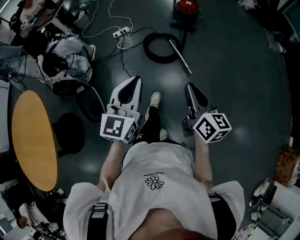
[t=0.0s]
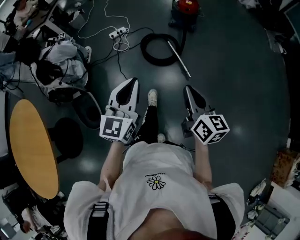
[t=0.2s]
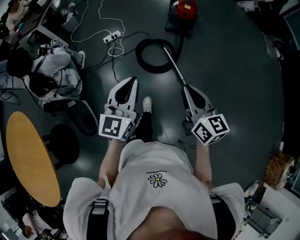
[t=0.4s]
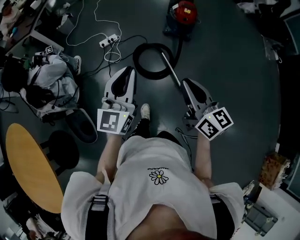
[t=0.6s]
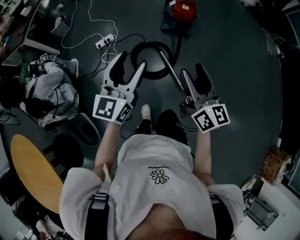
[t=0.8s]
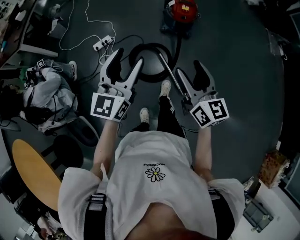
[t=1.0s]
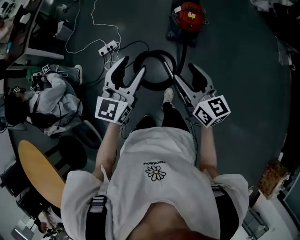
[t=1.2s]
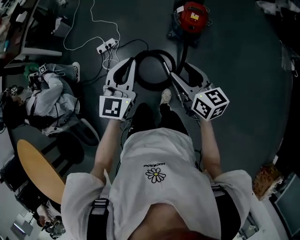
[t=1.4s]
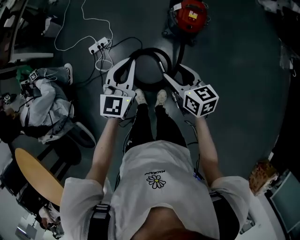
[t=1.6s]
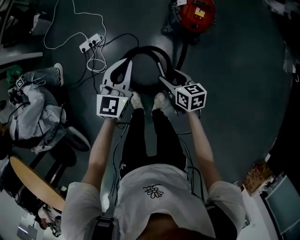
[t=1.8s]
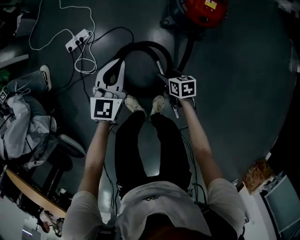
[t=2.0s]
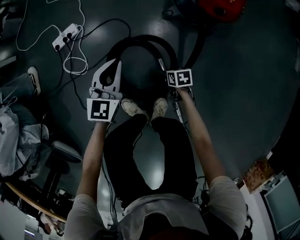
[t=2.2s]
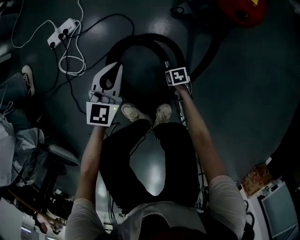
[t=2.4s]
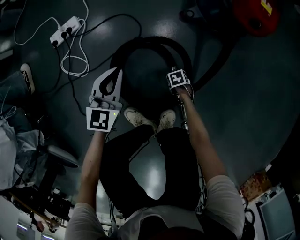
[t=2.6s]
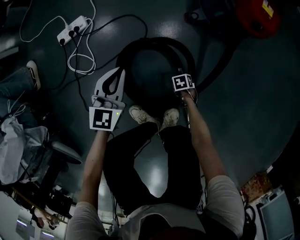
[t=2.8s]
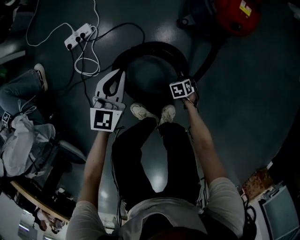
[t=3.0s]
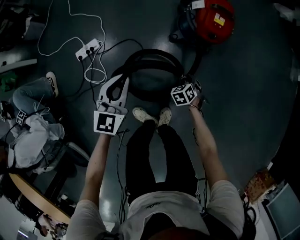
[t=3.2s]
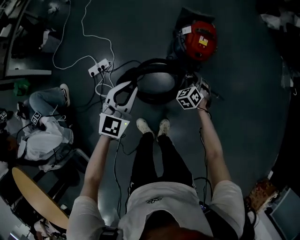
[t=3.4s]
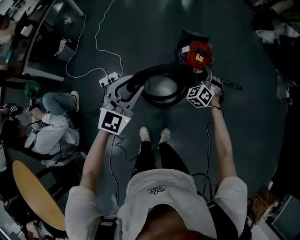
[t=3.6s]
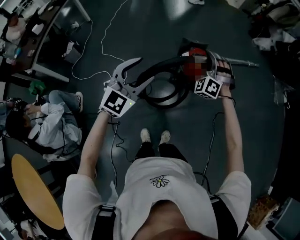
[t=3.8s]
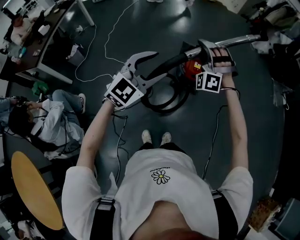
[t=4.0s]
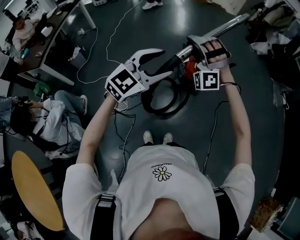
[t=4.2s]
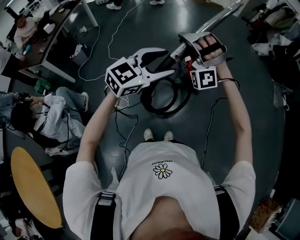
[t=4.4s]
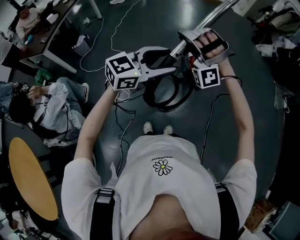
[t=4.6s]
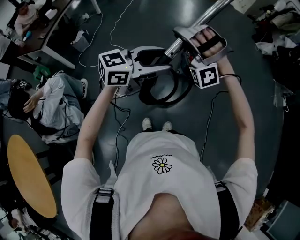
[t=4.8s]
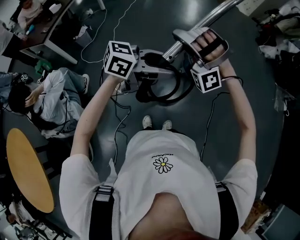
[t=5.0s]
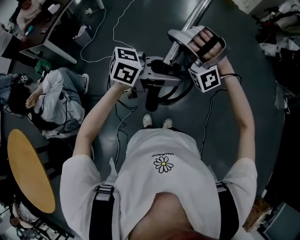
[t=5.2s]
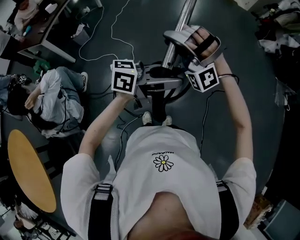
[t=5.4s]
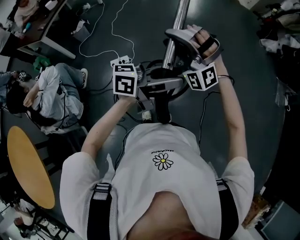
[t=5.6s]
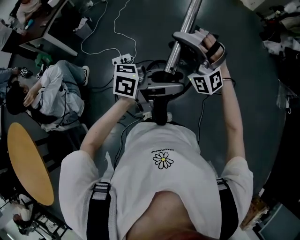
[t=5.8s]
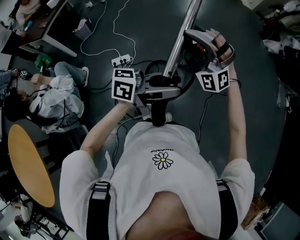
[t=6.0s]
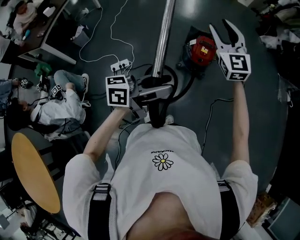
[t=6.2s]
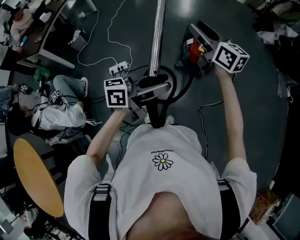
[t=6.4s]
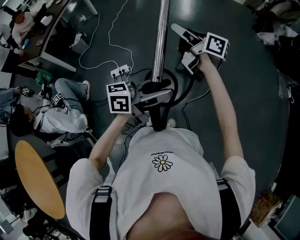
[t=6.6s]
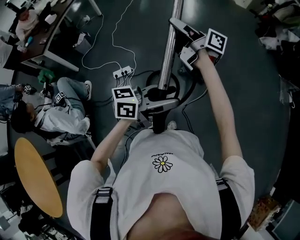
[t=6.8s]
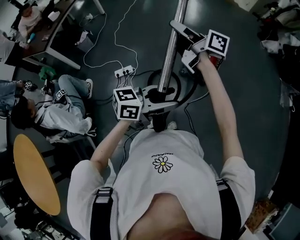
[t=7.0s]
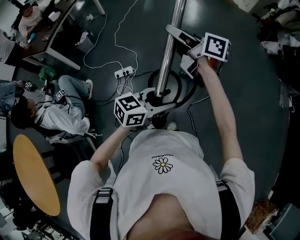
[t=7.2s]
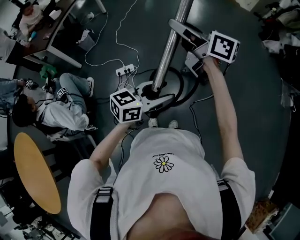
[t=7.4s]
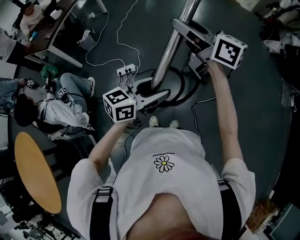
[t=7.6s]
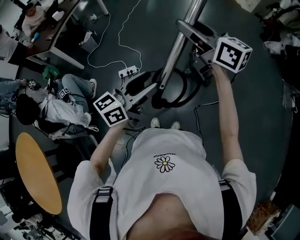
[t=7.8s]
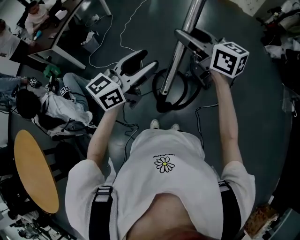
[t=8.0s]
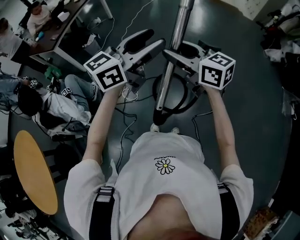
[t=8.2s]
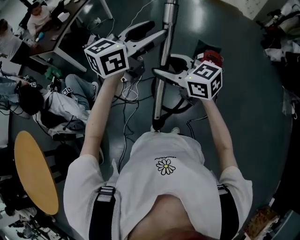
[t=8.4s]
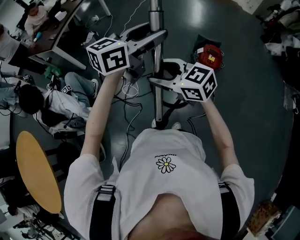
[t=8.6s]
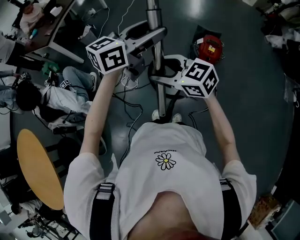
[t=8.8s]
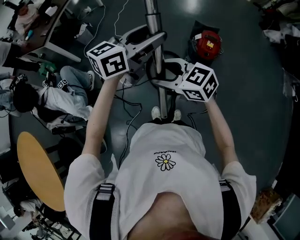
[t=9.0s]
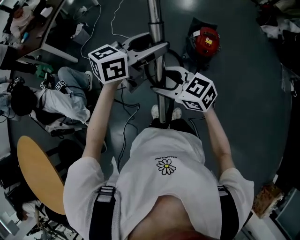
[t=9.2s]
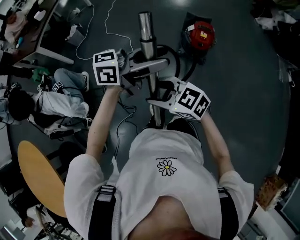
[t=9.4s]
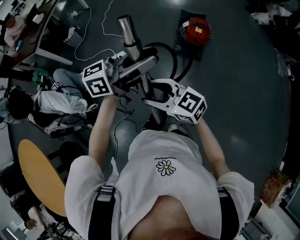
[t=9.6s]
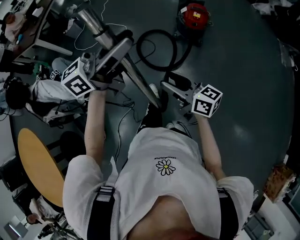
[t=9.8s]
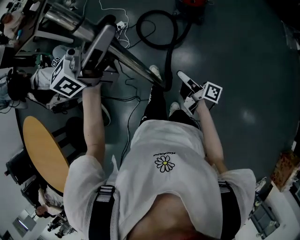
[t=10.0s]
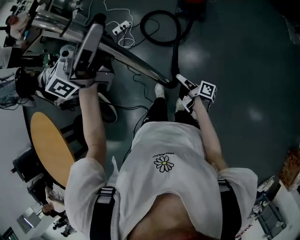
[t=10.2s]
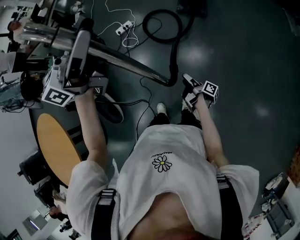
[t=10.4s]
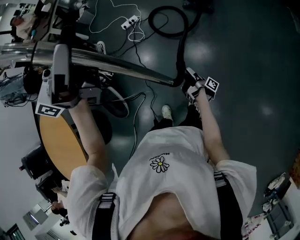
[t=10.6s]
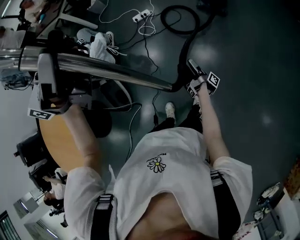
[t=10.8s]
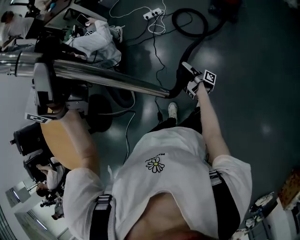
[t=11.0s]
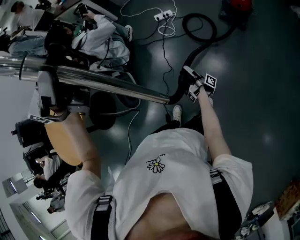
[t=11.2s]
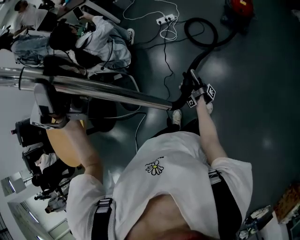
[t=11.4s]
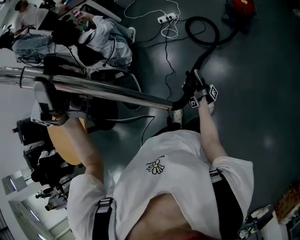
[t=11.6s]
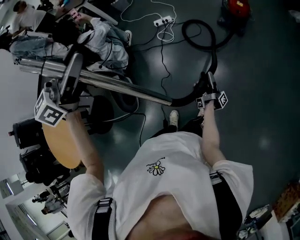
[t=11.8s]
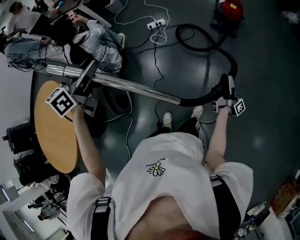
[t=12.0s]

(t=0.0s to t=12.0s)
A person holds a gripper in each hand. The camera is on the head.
t=0.0s - t=1.6s: The pair of grippers is taken forward, roughly 80 cm. The right gripper swivels roughly 30 degrees, and opens. The left gripper opens, then closes once more.
t=1.6s - t=3.0s: The left gripper travels downward by approximately 40 cm; the right gripper heads downward, covering some 70 cm, points its fingers about 60 degrees further downward, and closes.
t=3.0s - t=4.4s: Both grippers move upward, about 80 cm. The right gripper tips its fingers upward by roughly 80 degrees, while the left gripper rotates approximately 40 degrees, and opens.
t=4.4s - t=6.0s: The right gripper turns by roughly 30 degrees; the left gripper changes place by some 15 cm, and rolls counterclockwise, seen from behind, by some 50 degrees.
t=6.0s - t=7.6s: The left gripper ends up roughly 5 cm from where it was, and turns by about 30 degrees. The right gripper shifts approximately 10 cm upward, reaches approximately 10 cm to the right, then returns, and rolls clockwise, seen from behind, by approximately 110 degrees.
t=7.6s - t=9.0s: The left gripper heads forward and upward, covering some 15 cm. Meanwhile the right gripper travels downward, backward and to the left by some 25 cm, and rotates about 40 degrees.
t=9.0s - t=10.4s: Both grippers are carried roughly 40 cm. The right gripper rotates around the line of its fingers by some 110 degrees, clockwise from behind. The left gripper turns by about 20 degrees.
t=10.4s - t=12.0s: The right gripper heads upward, covering some 10 cm, travels to the left and back again, about 20 cm each way, and tilts its fingers roughly 30 degrees upward. Meanwhile the left gripper shifts approximately 35 cm to the left, backward and downward, and tilts its fingers about 40 degrees downward.

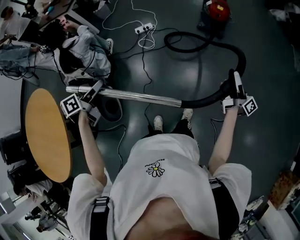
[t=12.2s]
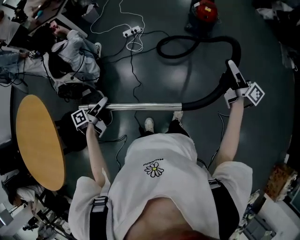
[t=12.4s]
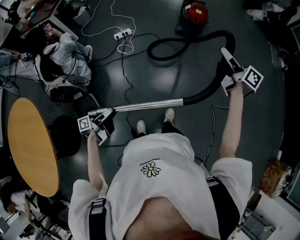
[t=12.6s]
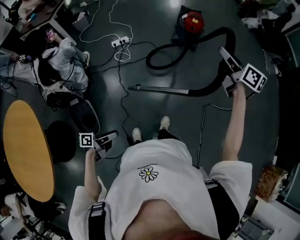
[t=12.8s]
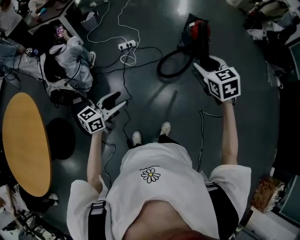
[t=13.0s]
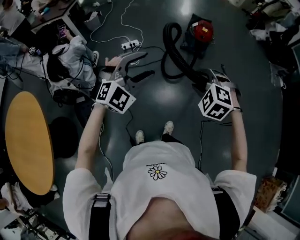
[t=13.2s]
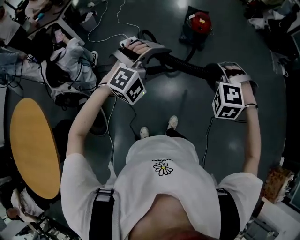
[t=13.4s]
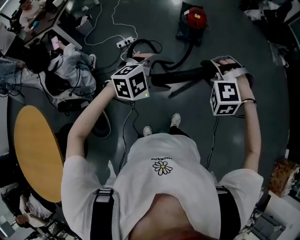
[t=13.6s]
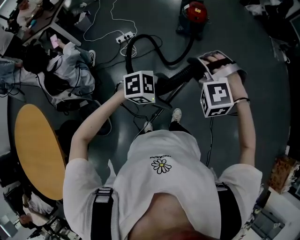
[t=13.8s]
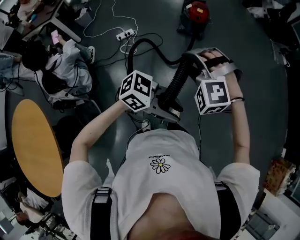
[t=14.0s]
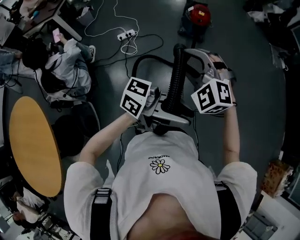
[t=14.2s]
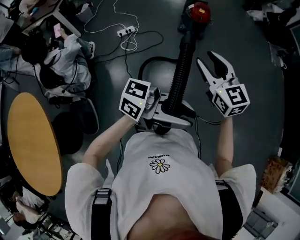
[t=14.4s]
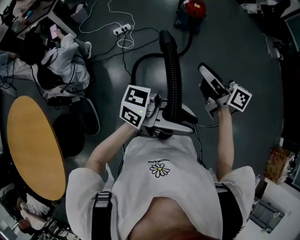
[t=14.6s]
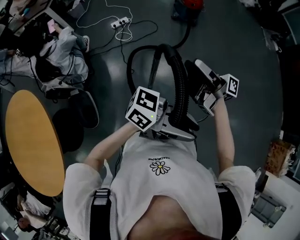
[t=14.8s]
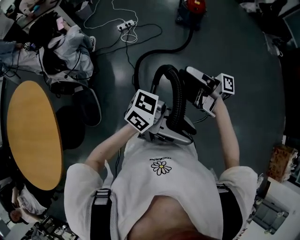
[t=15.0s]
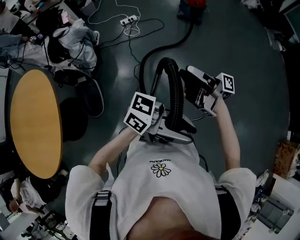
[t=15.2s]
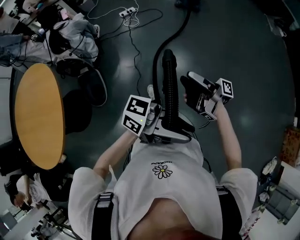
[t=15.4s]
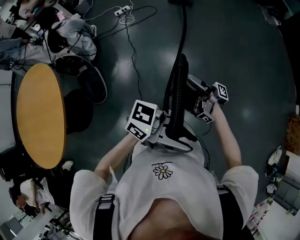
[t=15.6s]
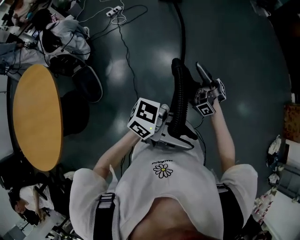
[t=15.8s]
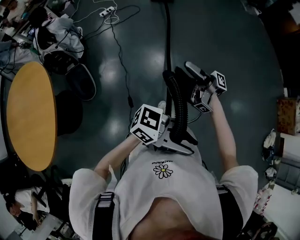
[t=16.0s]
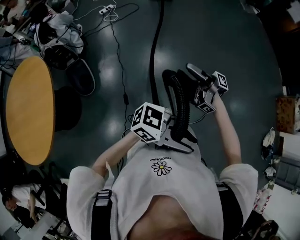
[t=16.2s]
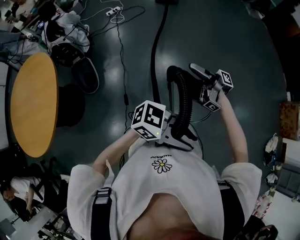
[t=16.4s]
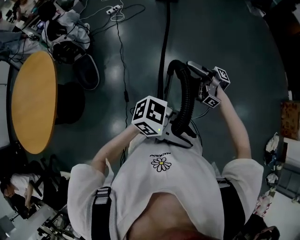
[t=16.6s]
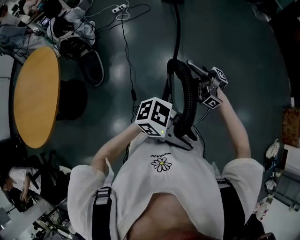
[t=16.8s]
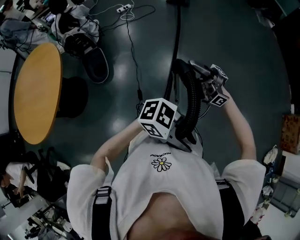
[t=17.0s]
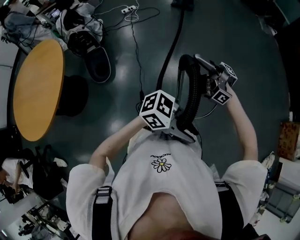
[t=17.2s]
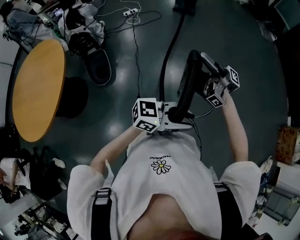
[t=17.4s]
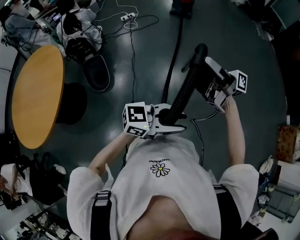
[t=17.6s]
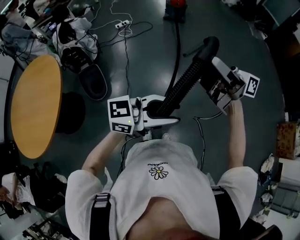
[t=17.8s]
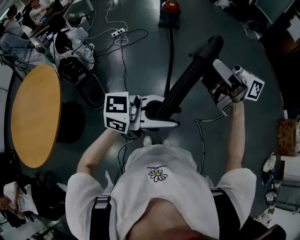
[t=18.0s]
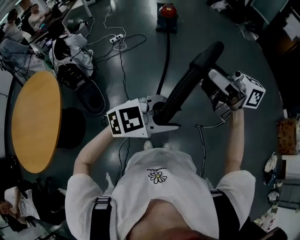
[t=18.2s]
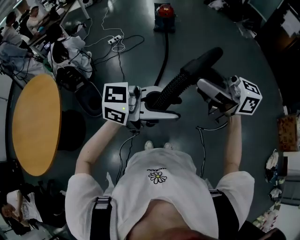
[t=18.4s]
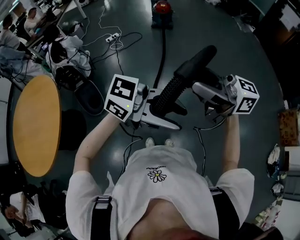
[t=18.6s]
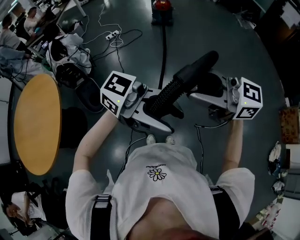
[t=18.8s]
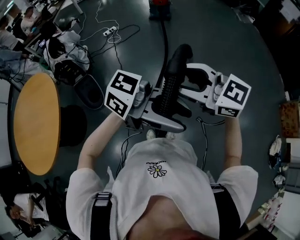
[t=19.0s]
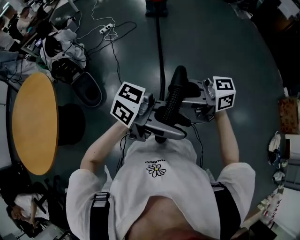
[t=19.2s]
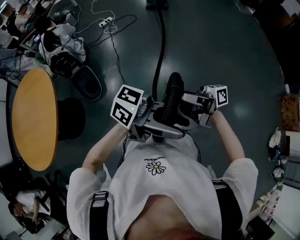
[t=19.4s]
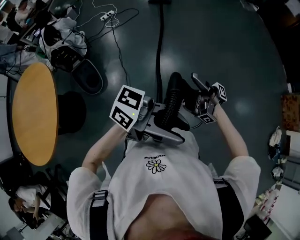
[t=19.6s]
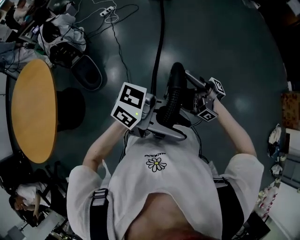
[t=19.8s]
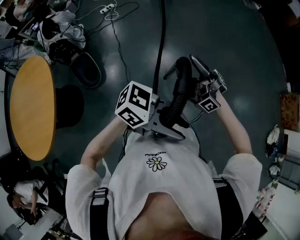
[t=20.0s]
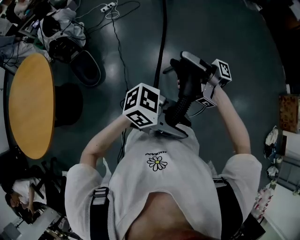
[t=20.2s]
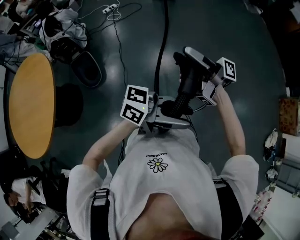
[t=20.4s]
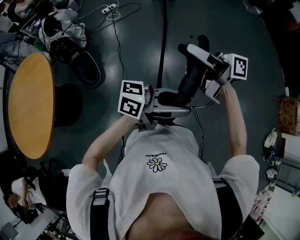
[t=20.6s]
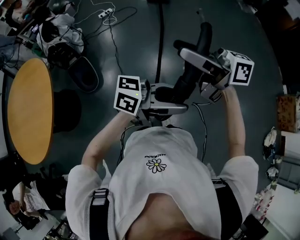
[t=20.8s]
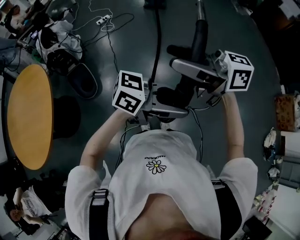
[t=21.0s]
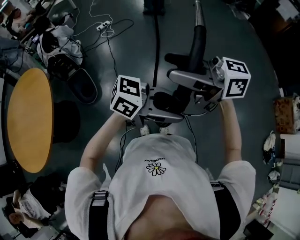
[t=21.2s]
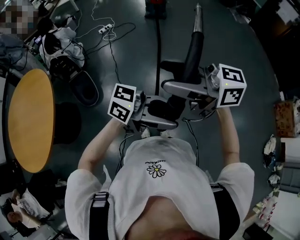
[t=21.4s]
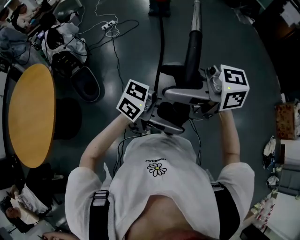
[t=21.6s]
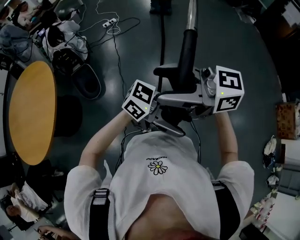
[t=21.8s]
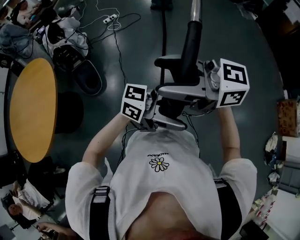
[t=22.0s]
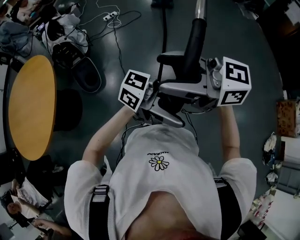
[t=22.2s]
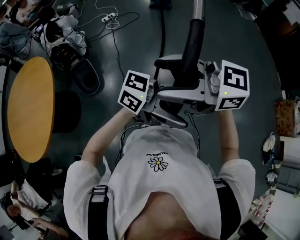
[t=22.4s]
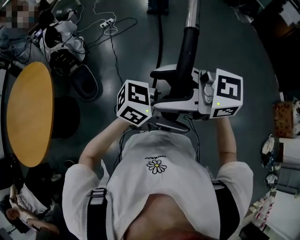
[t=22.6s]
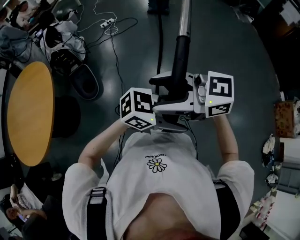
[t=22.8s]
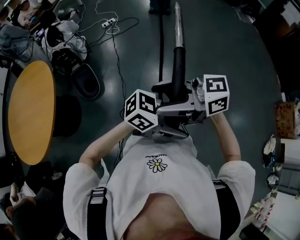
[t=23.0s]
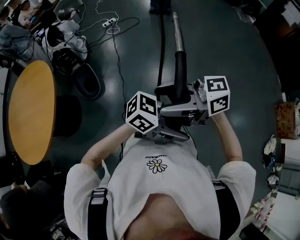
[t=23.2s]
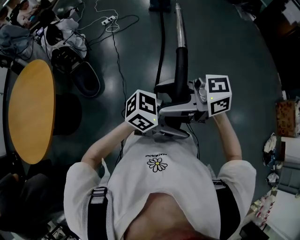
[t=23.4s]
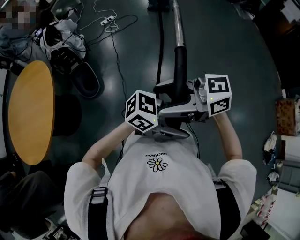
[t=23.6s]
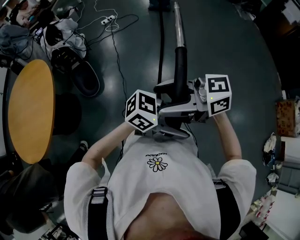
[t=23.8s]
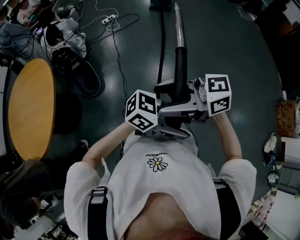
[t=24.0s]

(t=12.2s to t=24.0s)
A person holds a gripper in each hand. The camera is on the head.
t=12.2s - t=13.6s: The left gripper reaches about 15 cm downward, then returns, and rolls clockwise, seen from behind, by roughly 110 degrees, while the right gripper shifts by approximately 20 cm, and twists roughly 140 degrees counterclockwise, seen from behind.
t=13.6s - t=15.2s: The left gripper swings up and down, roughly 15 cm each way, with 2 reversals, points its fingers about 50 degrees further upward, and closes up, while the right gripper moves some 35 cm, and points its fingers some 70 degrees further upward.
t=15.2s - t=16.6s: The two grippers travel together, some 40 cm. The right gripper swivels approximately 20 degrees; the left gripper changes its angle by roughly 30 degrees.
t=16.6s - t=18.2s: The right gripper goes some 30 cm upward, and rolls counterclockwise, seen from behind, by approximately 80 degrees. The left gripper ends up about 15 cm from where it was, and swivels some 40 degrees.
t=18.2s - t=19.6s: The left gripper changes place by roughly 10 cm, and tips its fingers upward by some 30 degrees. The right gripper moves downward, about 25 cm, and rolls clockwise, seen from behind, by some 70 degrees.
t=19.6s - t=21.0s: The right gripper moves upward, some 20 cm, and rolls counterclockwise, seen from behind, by about 70 degrees, while the left gripper moves some 10 cm.
t=21.0s - t=22.6s: The right gripper ends up roughly 10 cm from where it was, and changes its angle by roughly 30 degrees; the left gripper opens its fingers.
t=22.6s - t=24.0s: The left gripper changes place by some 5 cm. Meanwhile the right gripper goes approximately 5 cm downward, and turns by roughly 20 degrees.
